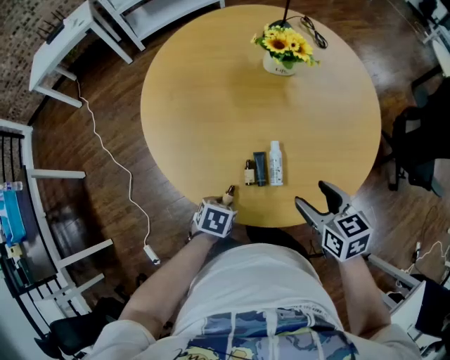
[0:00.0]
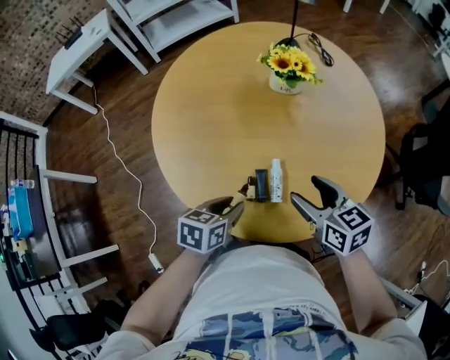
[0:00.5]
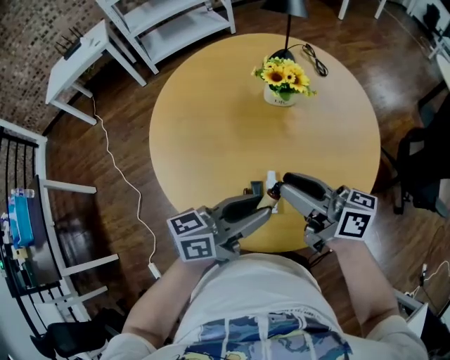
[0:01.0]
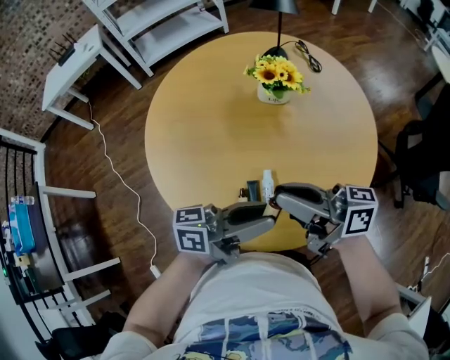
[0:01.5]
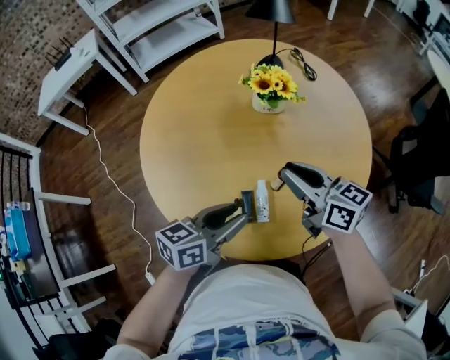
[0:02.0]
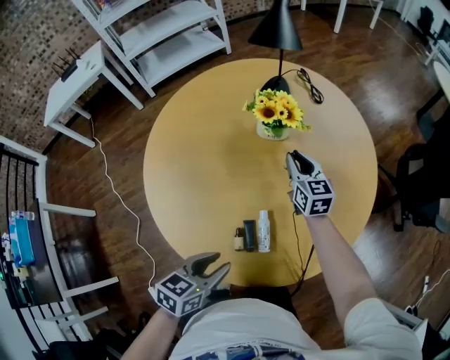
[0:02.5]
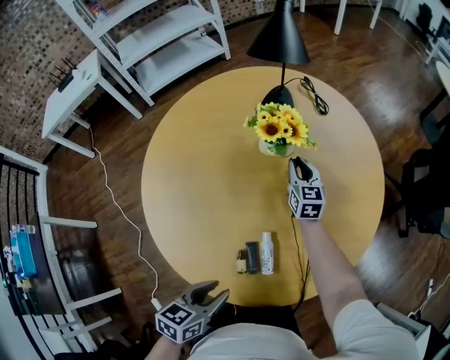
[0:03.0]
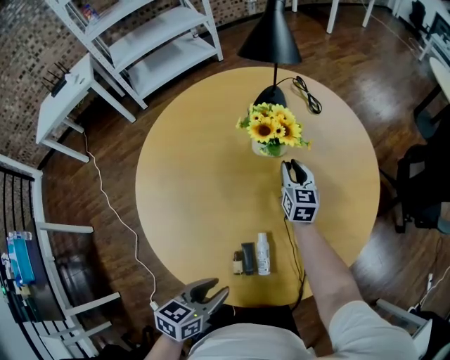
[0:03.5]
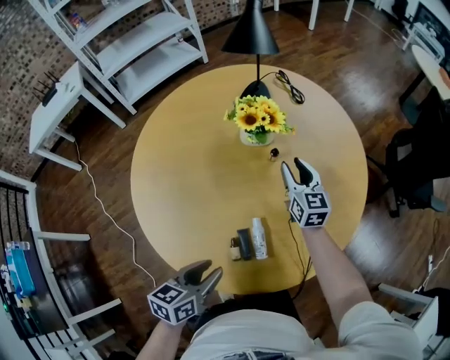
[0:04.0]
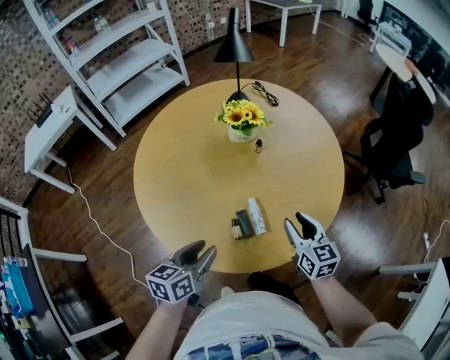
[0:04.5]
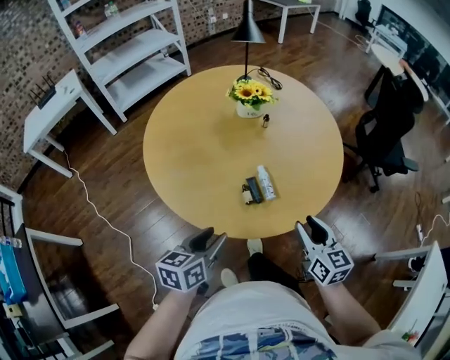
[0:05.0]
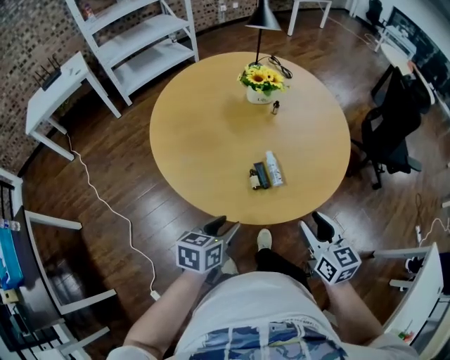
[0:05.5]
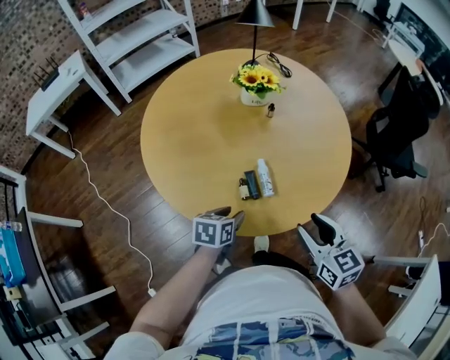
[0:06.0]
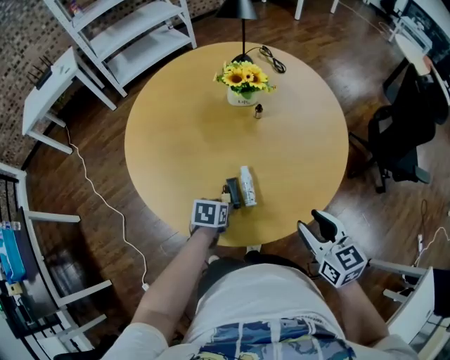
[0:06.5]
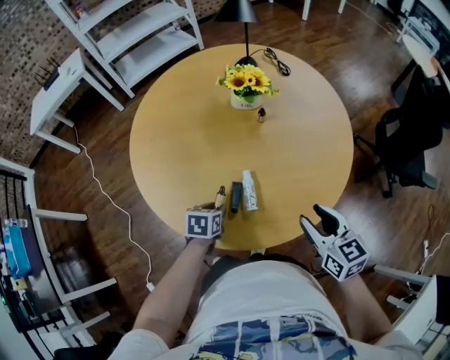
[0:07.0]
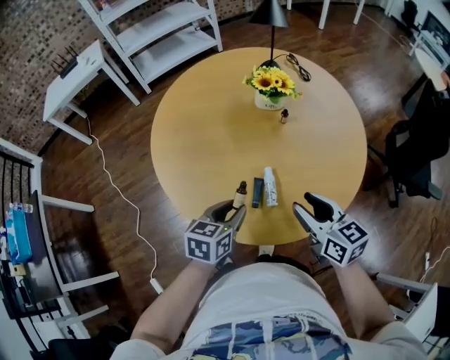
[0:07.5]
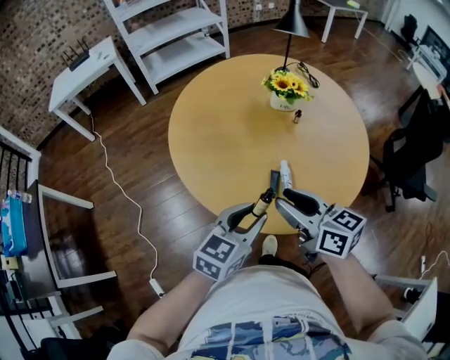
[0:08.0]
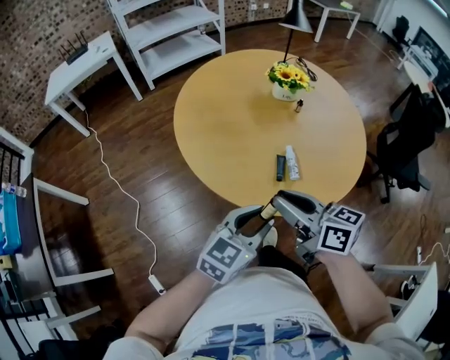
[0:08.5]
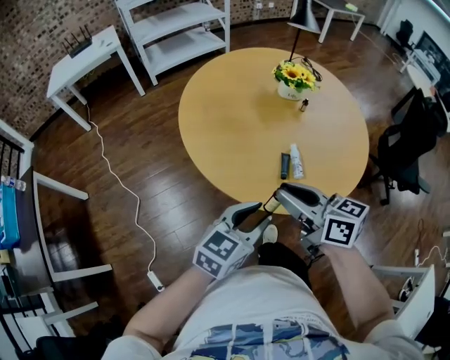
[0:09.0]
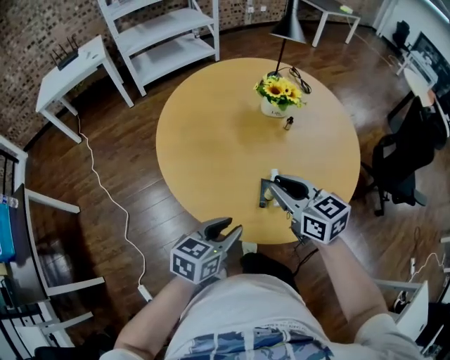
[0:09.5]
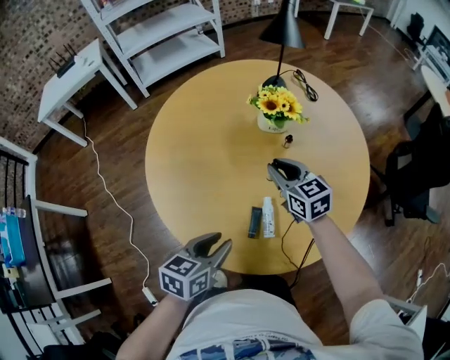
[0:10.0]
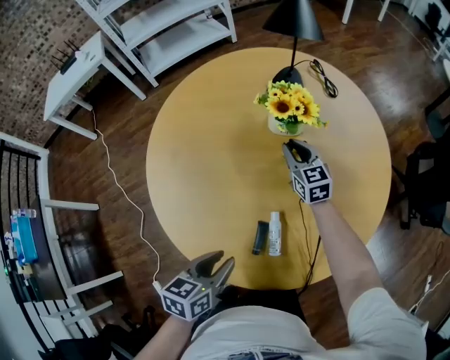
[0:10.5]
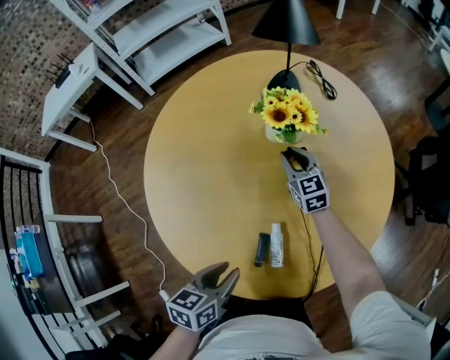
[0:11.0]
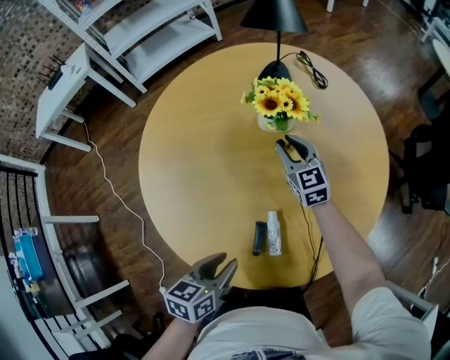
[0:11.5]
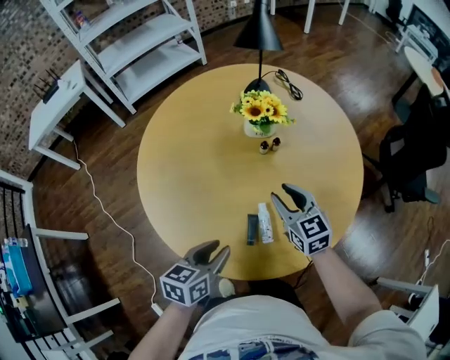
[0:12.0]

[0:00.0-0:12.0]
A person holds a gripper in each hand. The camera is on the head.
0:00.0 to 0:02.0: The left gripper is displaced upward by roughly 20 cm, and points its fingers roughly 50 degrees further upward, while the right gripper shifts by approximately 15 cm, tips its fingers upward by roughly 30 degrees, and closes.
0:02.0 to 0:04.0: The left gripper heads to the left and downward, covering roughly 10 cm, while the right gripper moves forward and downward, some 20 cm, rotates some 40 degrees, and opens.
0:04.0 to 0:06.0: The left gripper moves backward and downward, approximately 10 cm; the right gripper goes roughly 40 cm backward.
0:06.0 to 0:08.0: The right gripper is displaced to the left and upward by some 15 cm, and rotates roughly 30 degrees; the left gripper shifts approximately 15 cm upward, and rotates about 30 degrees.
0:08.0 to 0:10.0: The right gripper heads forward and downward, covering roughly 30 cm, and rotates about 20 degrees; the left gripper heads forward and downward, covering about 10 cm, and swivels some 20 degrees.
0:10.0 to 0:12.0: The right gripper moves to the right, approximately 5 cm, and travels forward and back again, approximately 15 cm each way.

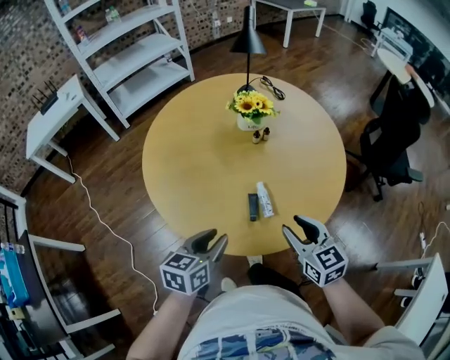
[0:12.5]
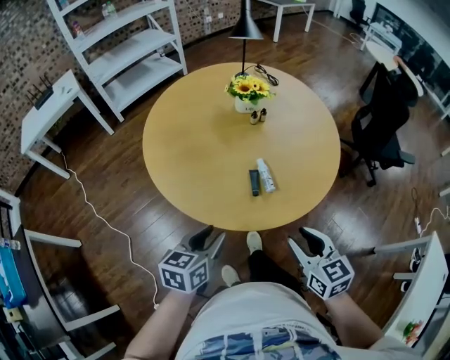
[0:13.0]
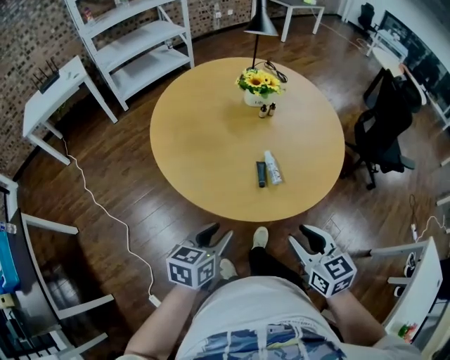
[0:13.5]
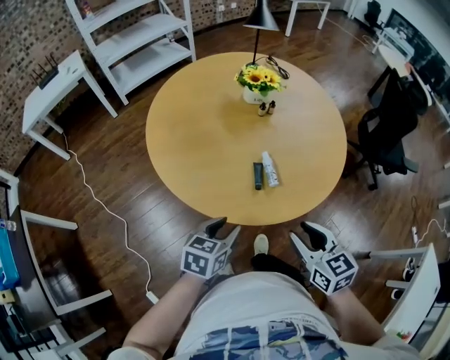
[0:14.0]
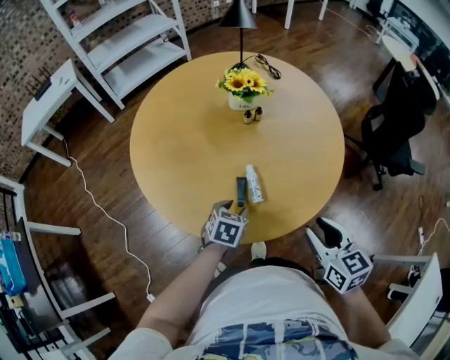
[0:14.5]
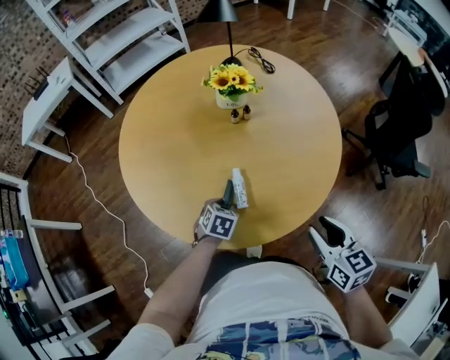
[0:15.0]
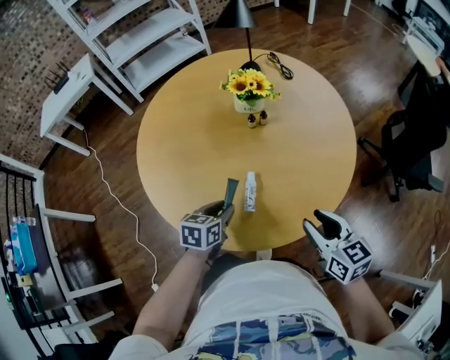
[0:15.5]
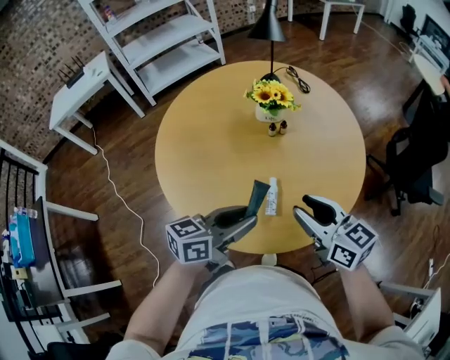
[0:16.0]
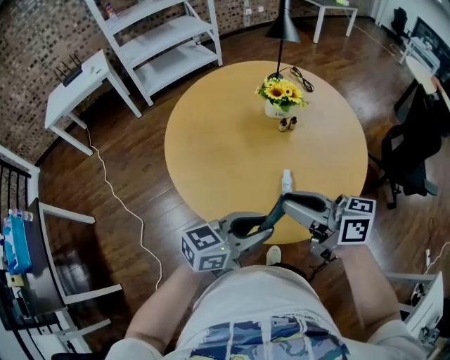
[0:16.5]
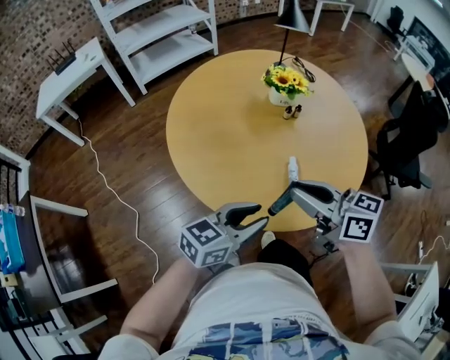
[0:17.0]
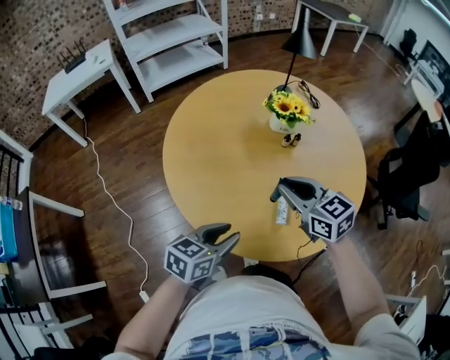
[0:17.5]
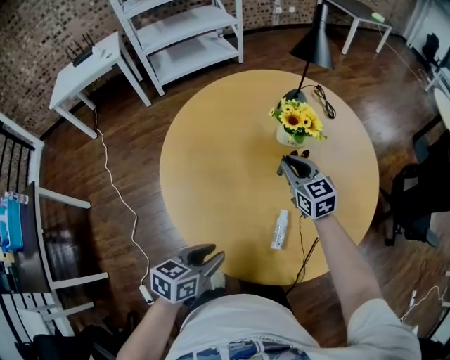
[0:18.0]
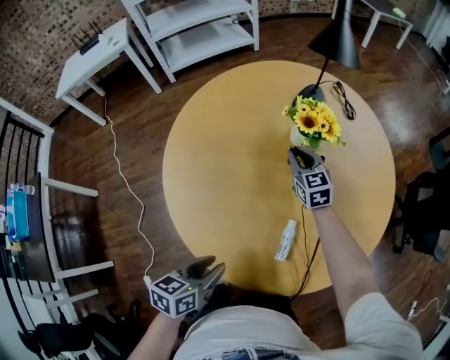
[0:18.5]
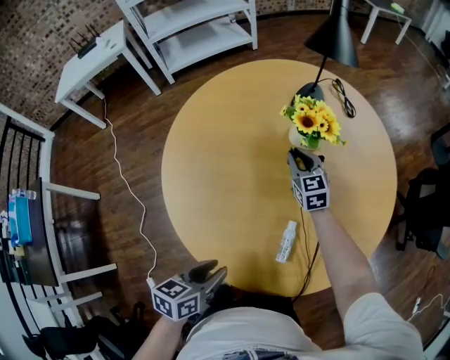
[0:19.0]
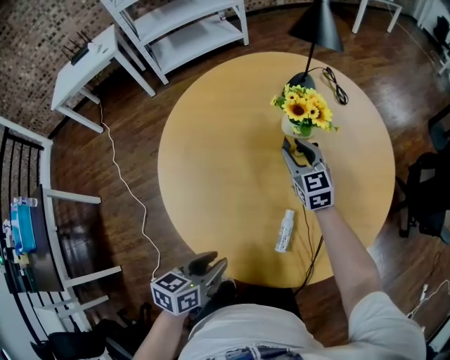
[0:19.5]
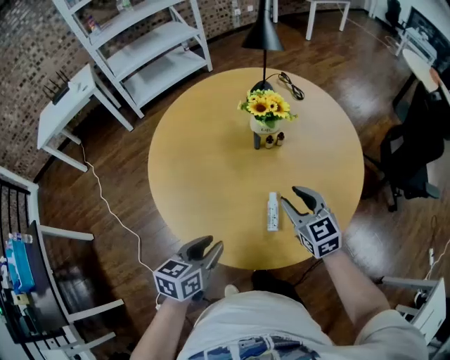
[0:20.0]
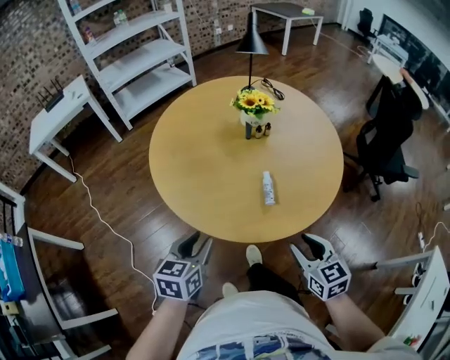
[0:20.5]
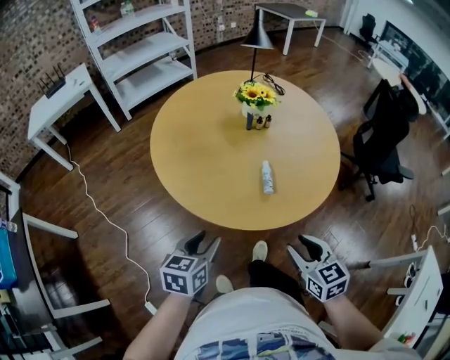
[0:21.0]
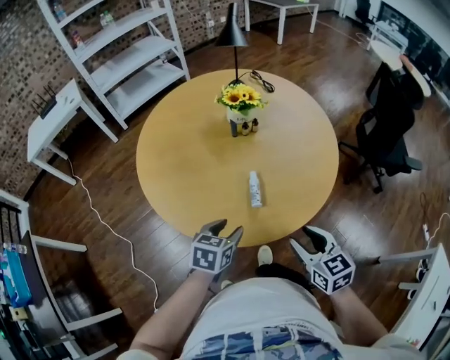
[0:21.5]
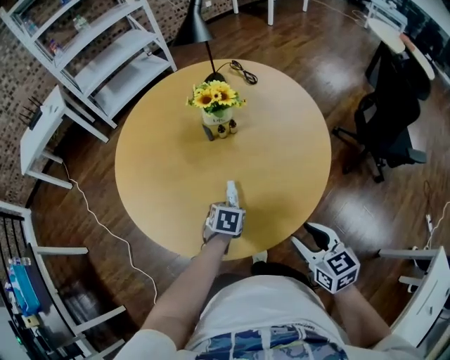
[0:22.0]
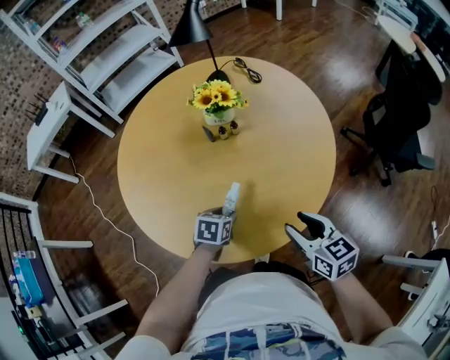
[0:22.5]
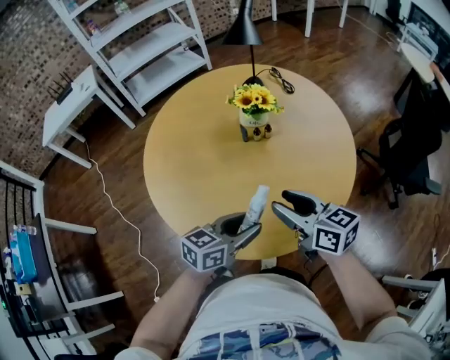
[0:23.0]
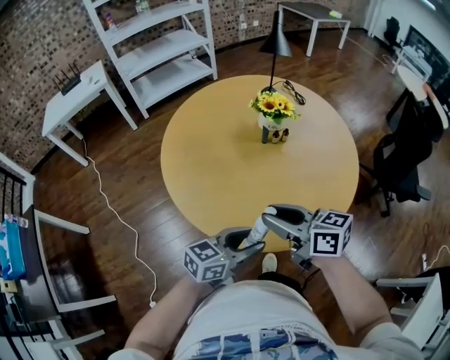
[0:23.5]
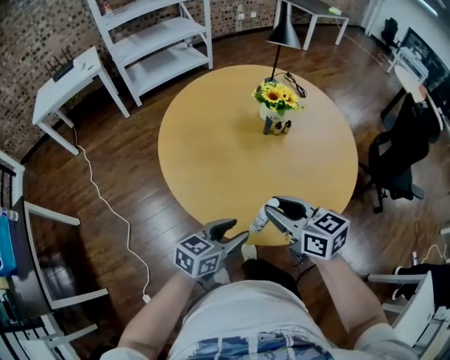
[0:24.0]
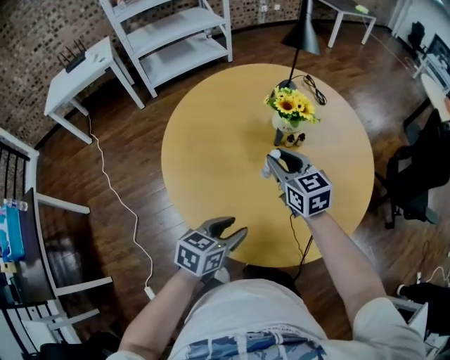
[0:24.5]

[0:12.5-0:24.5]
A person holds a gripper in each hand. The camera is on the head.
0:12.5 to 0:14.5: The right gripper moves to the right, approximately 10 cm, and moves about 15 cm backward and comes back. The left gripper is displaced downward and to the right by some 20 cm, travels backward and back again, some 15 cm each way, and swivels some 30 degrees.
0:14.5 to 0:16.5: The right gripper changes place by about 25 cm, rotates approximately 50 degrees, and closes up, while the left gripper is displaced upward by about 20 cm, and tilts its fingers about 40 degrees upward.
0:16.5 to 0:18.5: The left gripper shifts by approximately 20 cm, and rotates some 50 degrees. The right gripper shifts by roughly 50 cm, and changes its angle by roughly 50 degrees.
0:18.5 to 0:20.5: The left gripper heads backward and upward, covering some 15 cm, and turns by about 20 degrees. Meanwhile the right gripper moves backward, roughly 50 cm, and opens.
0:20.5 to 0:22.5: The right gripper heads forward and to the right, covering approximately 25 cm; the left gripper is displaced to the right, forward and downward by about 35 cm, and swivels some 30 degrees.
0:22.5 to 0:24.5: The right gripper moves to the left and forward, about 35 cm. Meanwhile the left gripper goes roughly 20 cm to the left and upward, and swivels approximately 20 degrees.

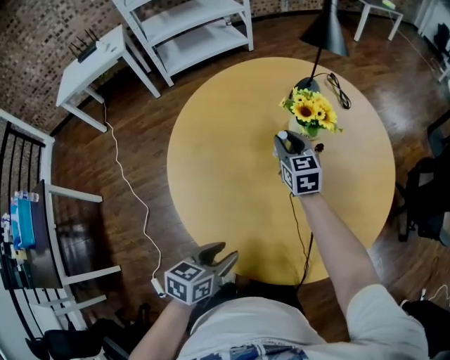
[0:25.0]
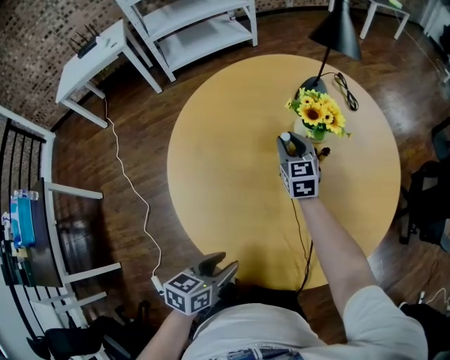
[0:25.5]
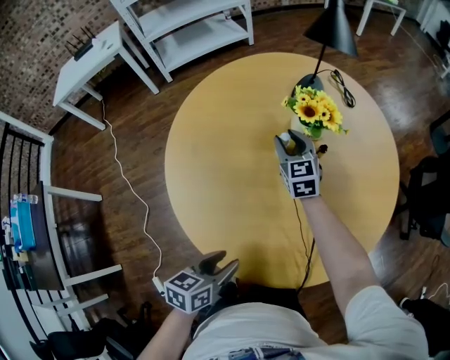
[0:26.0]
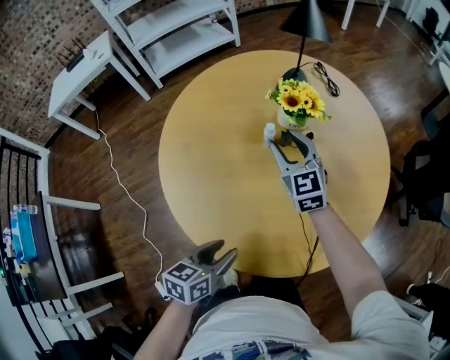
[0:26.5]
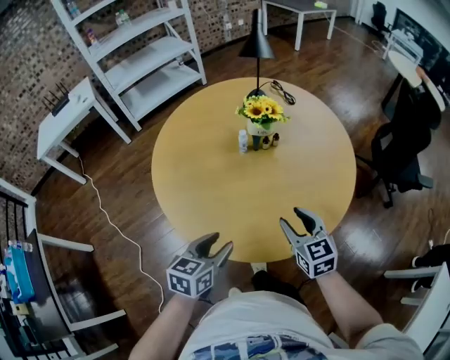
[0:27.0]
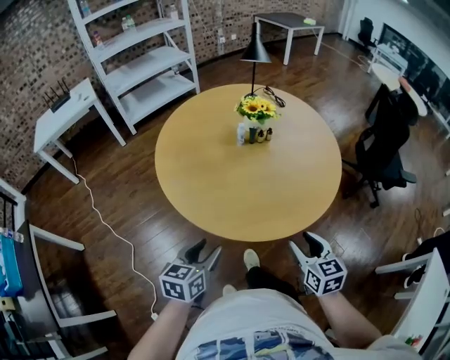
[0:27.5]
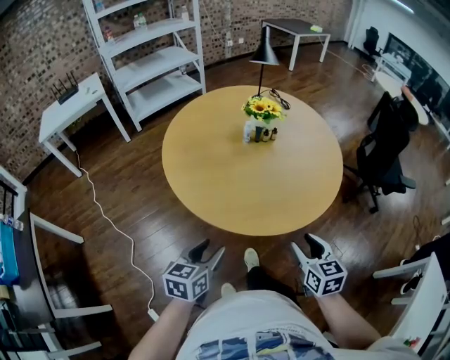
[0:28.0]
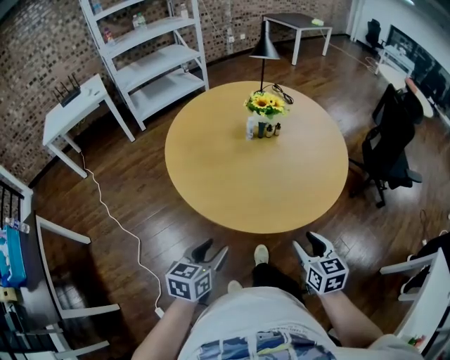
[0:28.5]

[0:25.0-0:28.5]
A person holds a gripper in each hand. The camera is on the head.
0:25.0 to 0:27.0: The right gripper moves backward and to the right, some 35 cm; the left gripper is displaced upward and backward by some 5 cm.
0:27.0 to 0:28.5: The grippers both shift backward by some 20 cm.
